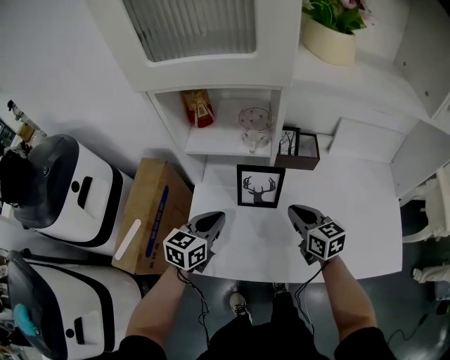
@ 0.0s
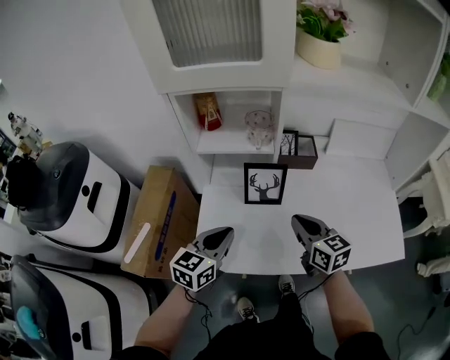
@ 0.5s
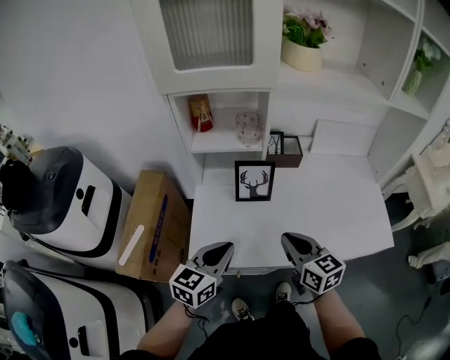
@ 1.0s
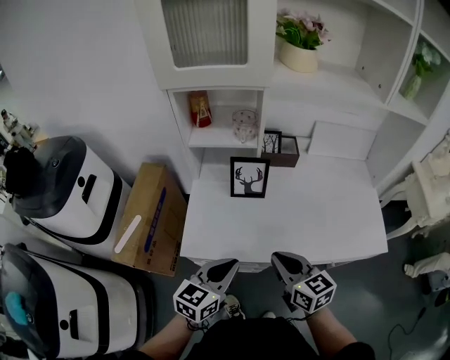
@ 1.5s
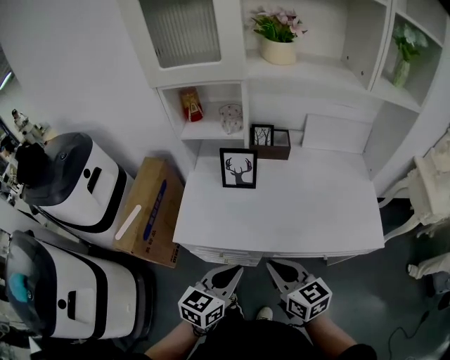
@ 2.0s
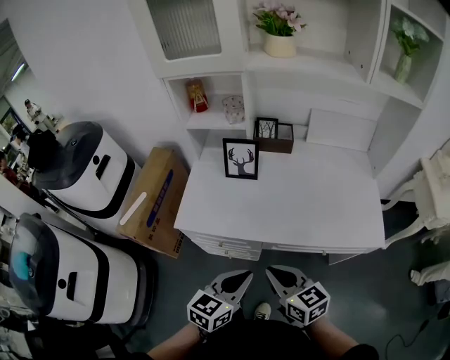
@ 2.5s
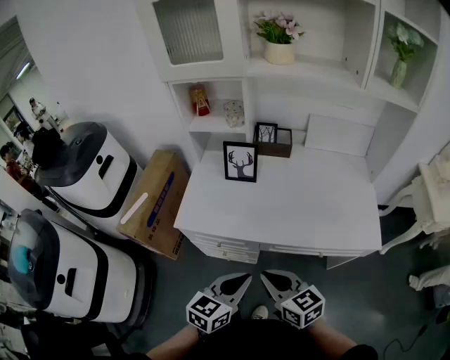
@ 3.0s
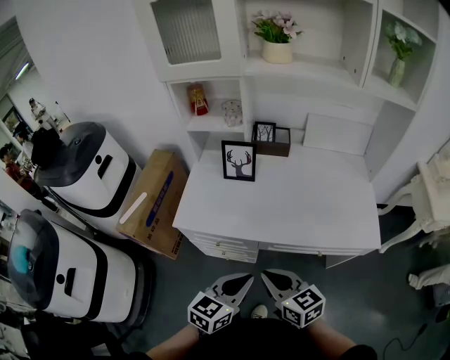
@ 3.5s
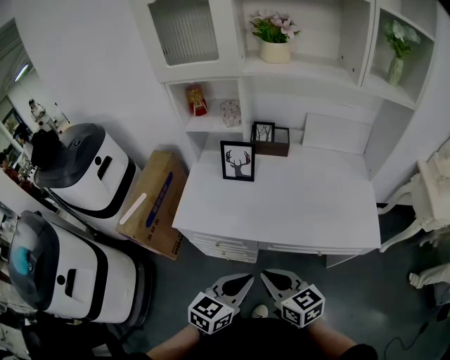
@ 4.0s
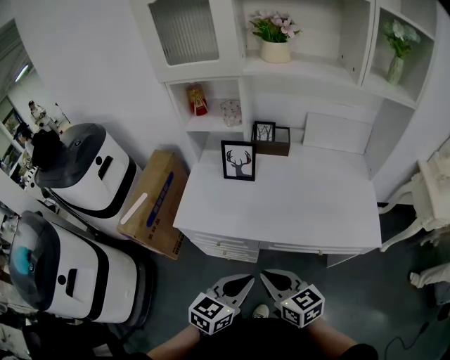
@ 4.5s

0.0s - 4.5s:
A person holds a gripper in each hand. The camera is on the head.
0.0s - 2.0s: The left gripper shifts approximately 35 cm backward and to the right; the right gripper shifts about 30 cm backward.
2.0s - 4.5s: The left gripper heads backward and to the right, covering approximately 10 cm; the right gripper is displaced backward by some 10 cm.

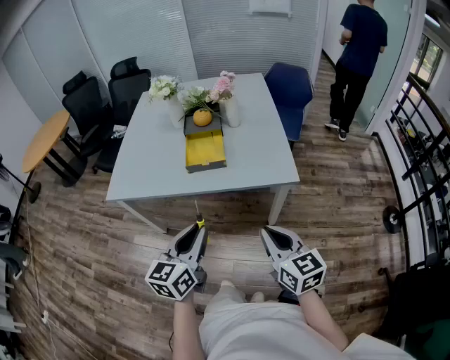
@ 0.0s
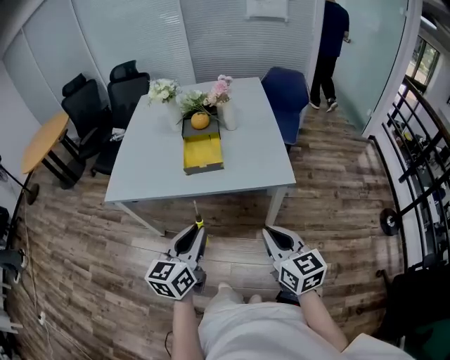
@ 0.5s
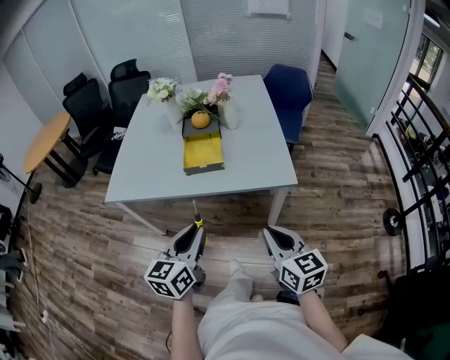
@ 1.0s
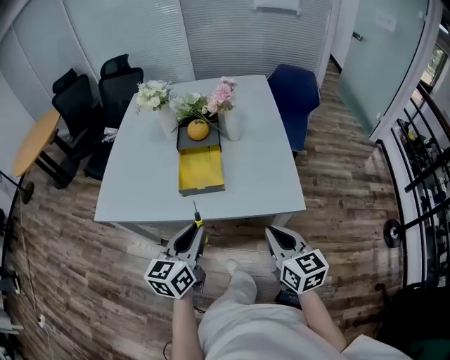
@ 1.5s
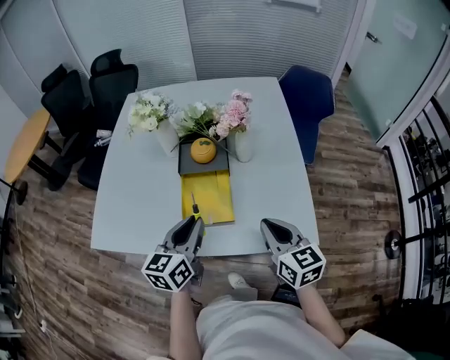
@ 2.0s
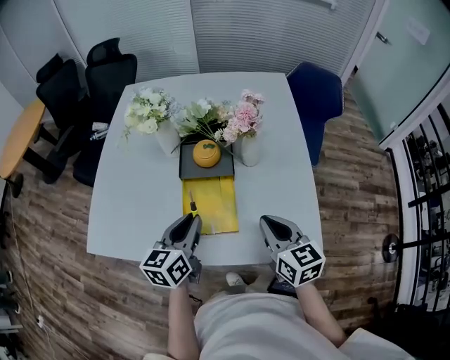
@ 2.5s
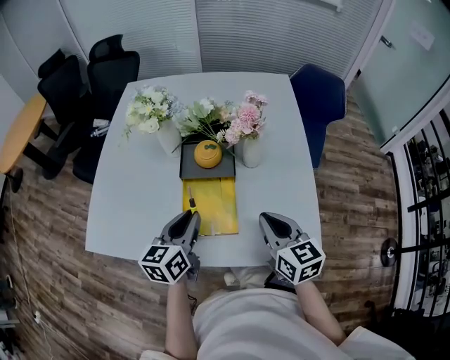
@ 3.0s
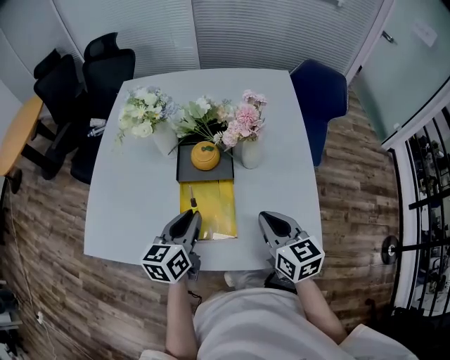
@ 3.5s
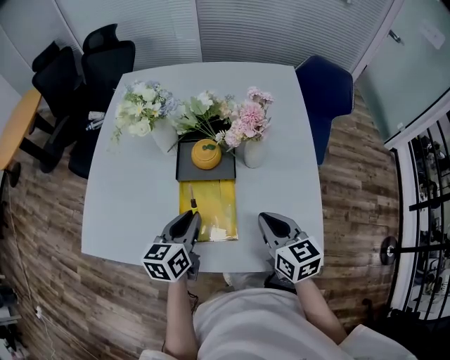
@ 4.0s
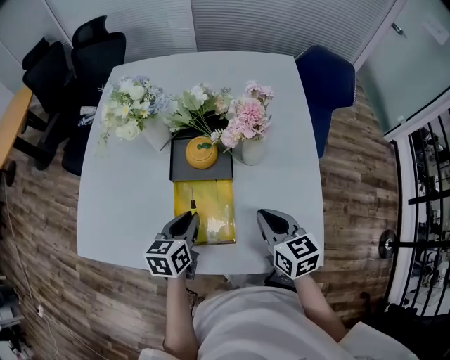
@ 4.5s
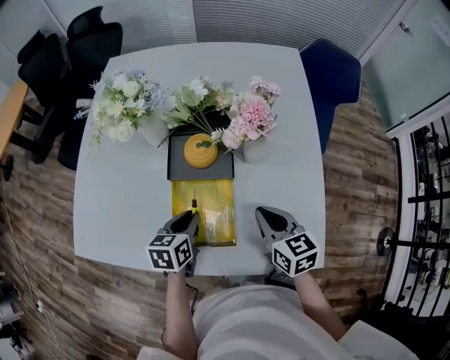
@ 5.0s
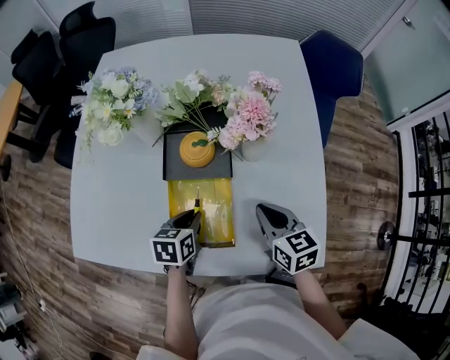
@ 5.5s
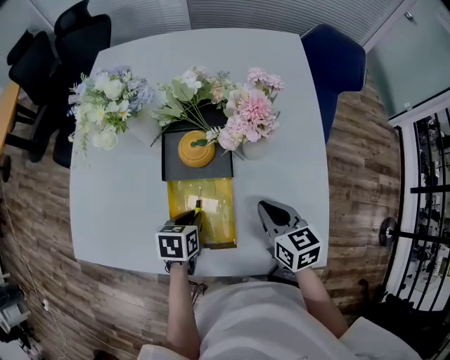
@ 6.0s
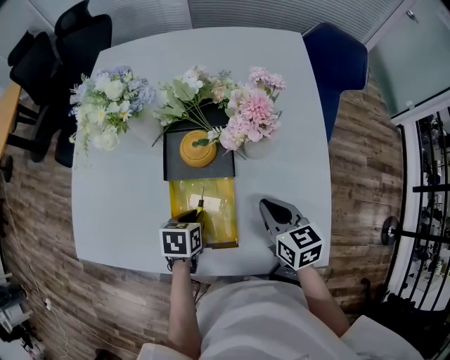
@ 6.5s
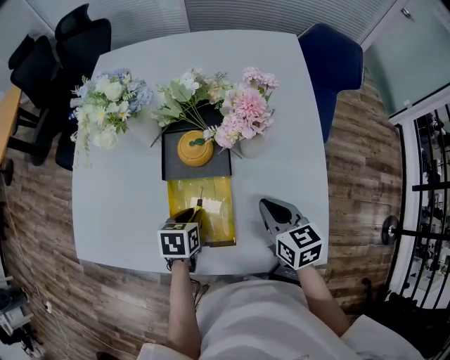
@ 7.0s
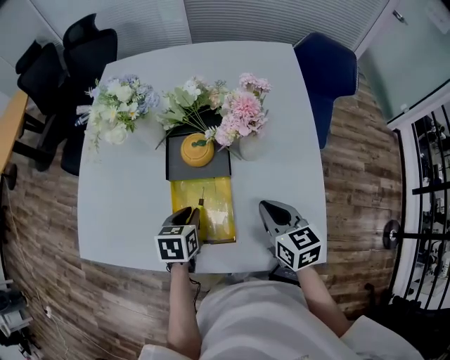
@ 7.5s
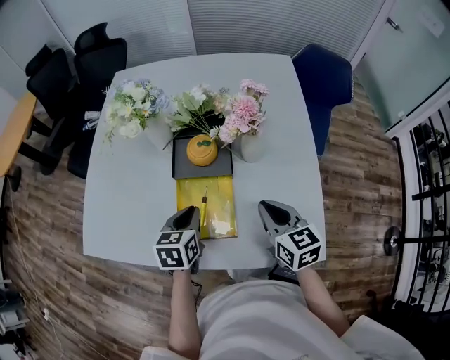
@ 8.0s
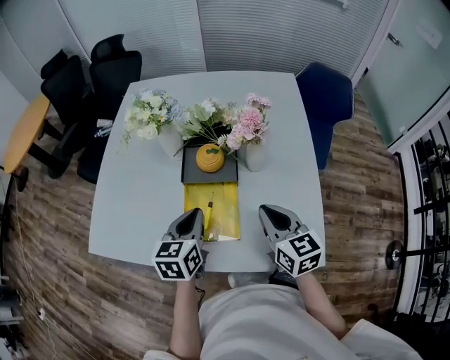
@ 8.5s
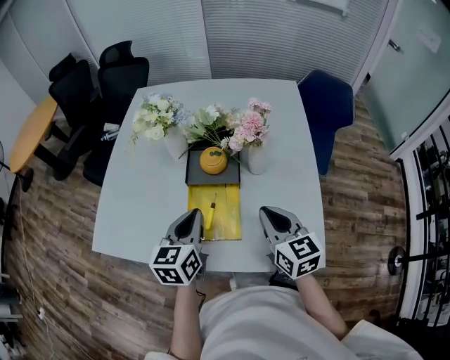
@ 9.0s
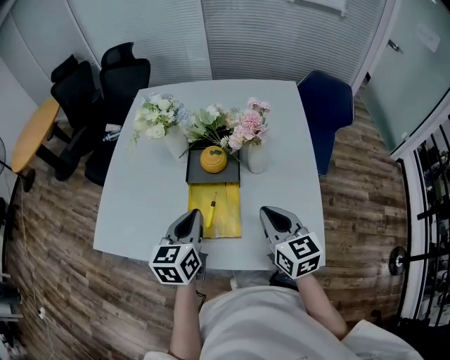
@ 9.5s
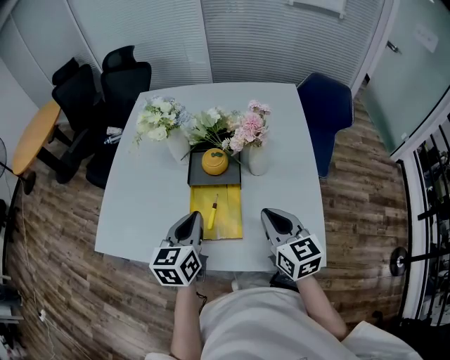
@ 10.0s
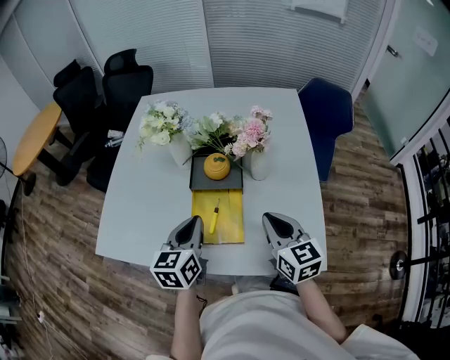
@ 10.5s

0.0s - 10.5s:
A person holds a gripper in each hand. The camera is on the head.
0.0s - 2.0s: The grippers both shift forward by about 35 cm.
2.0s - 4.0s: Both grippers travel together forward and downward, approximately 15 cm.
4.0s - 6.5s: The left gripper heads downward, covering roughly 15 cm, and points its fingers approximately 40 degrees further downward, while the right gripper goes approximately 10 cm downward and forward.
6.5s - 8.5s: The right gripper heads upward and backward, covering some 15 cm. The left gripper travels upward by roughly 20 cm, and tips its fingers upward by about 30 degrees.
8.5s - 10.5s: The grippers make only small movements.

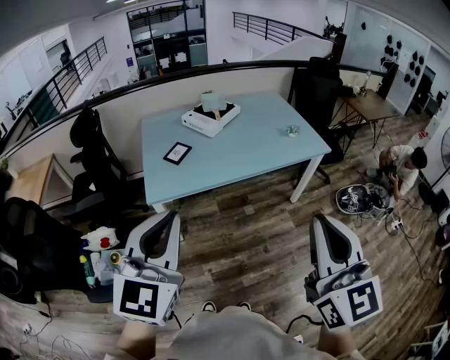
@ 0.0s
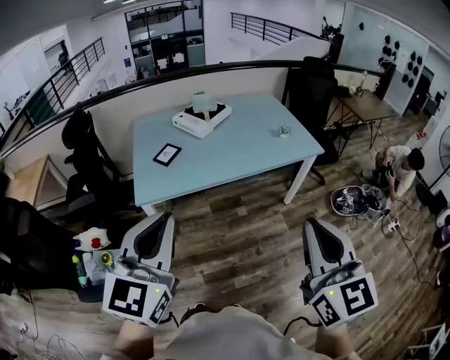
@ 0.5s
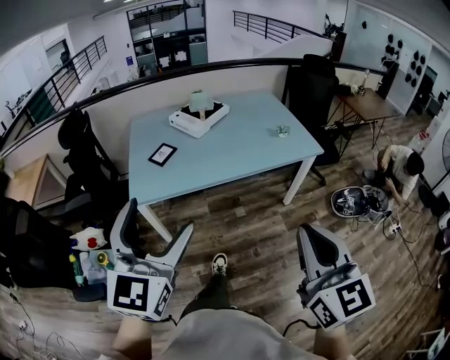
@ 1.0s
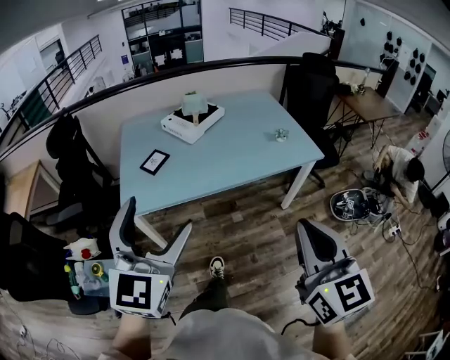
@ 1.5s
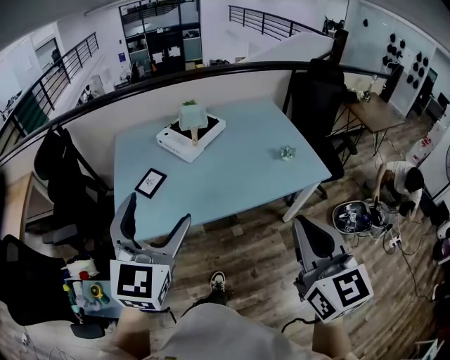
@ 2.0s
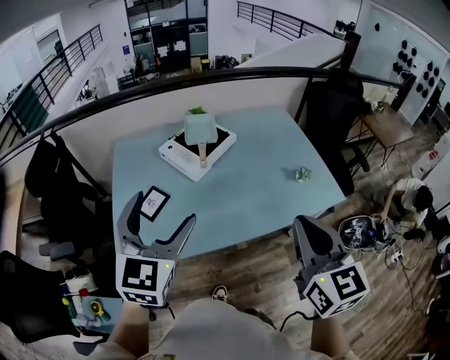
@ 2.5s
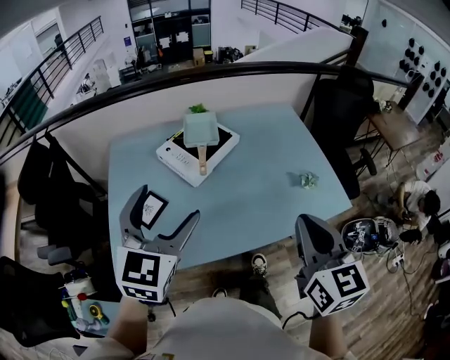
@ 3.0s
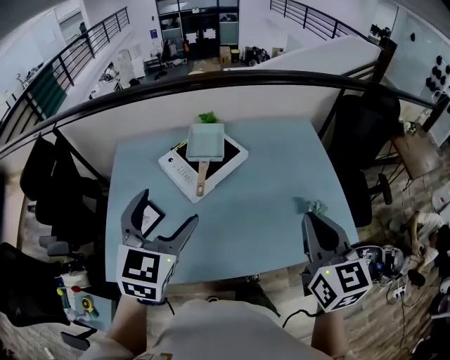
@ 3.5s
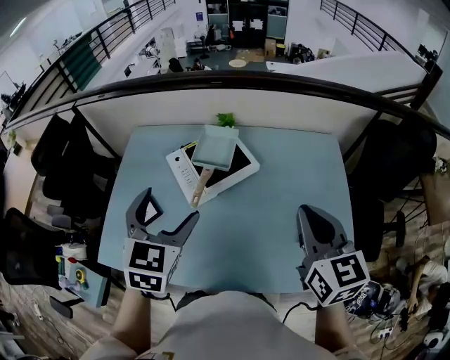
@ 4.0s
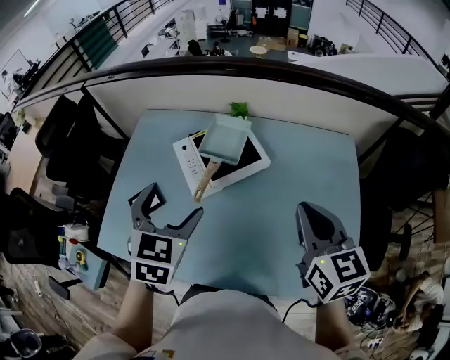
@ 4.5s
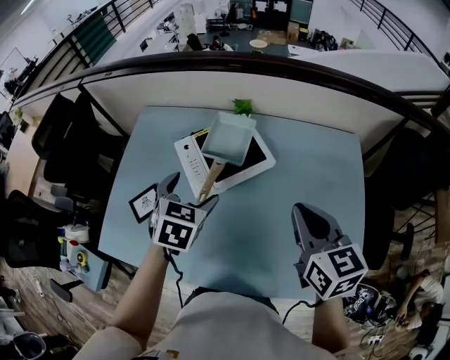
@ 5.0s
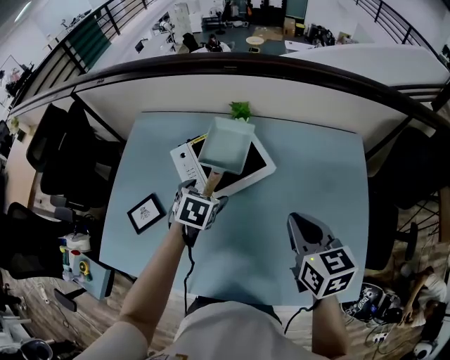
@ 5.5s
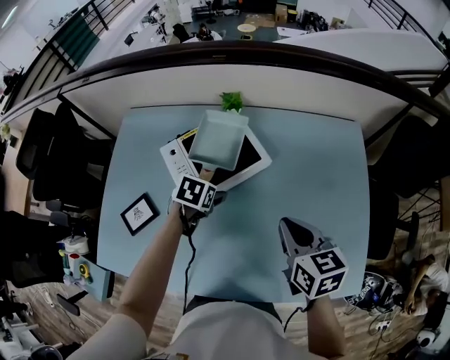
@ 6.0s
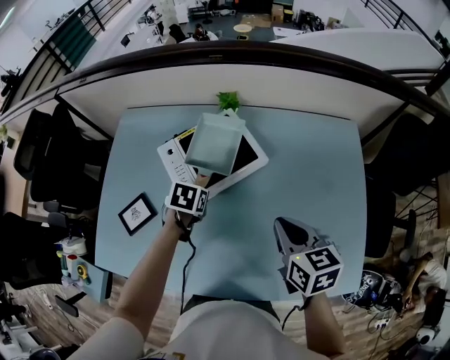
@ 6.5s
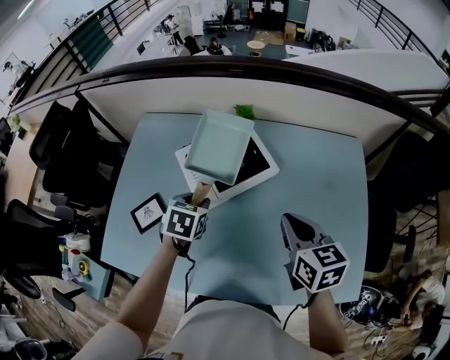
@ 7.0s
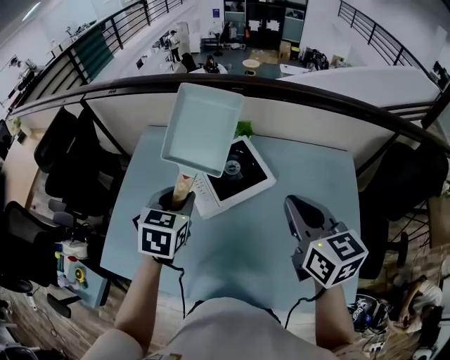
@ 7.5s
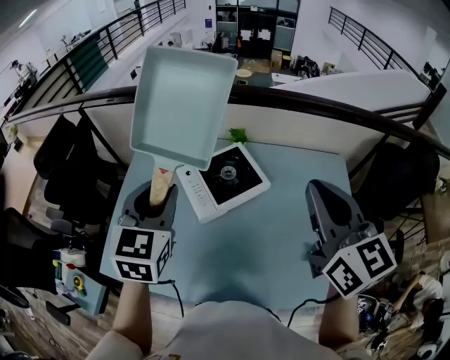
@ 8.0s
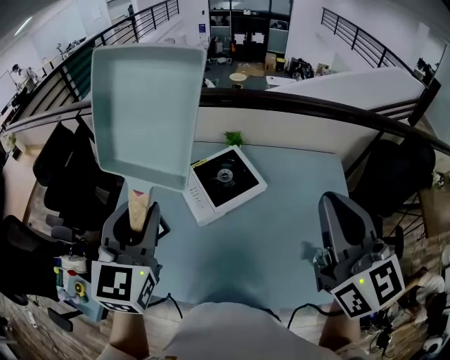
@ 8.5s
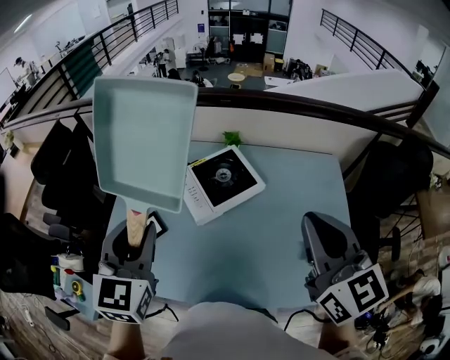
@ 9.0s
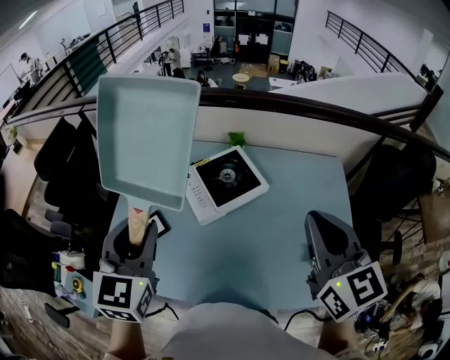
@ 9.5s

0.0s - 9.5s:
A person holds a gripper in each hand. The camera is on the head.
0.0s - 2.0s: The grippers both shift forward by some 30 cm. The left gripper opens its fingers.
2.0s - 4.0s: The pair of grippers is taken forward, approximately 50 cm. The left gripper rotates some 30 degrees. The right gripper turns by some 20 degrees.
4.0s - 5.5s: The left gripper travels downward and forward by roughly 30 cm, and tilts its fingers about 30 degrees downward, while the right gripper goes roughly 15 cm downward and forward.
5.5s - 7.5s: Both grippers travel together upward and to the left, roughly 15 cm. The left gripper rotates some 20 degrees, and closes.
7.5s - 9.5s: The right gripper goes roughly 15 cm upward and backward. Meanwhile the left gripper travels upward, backward and to the left by some 20 cm, and changes its angle by roughly 20 degrees.

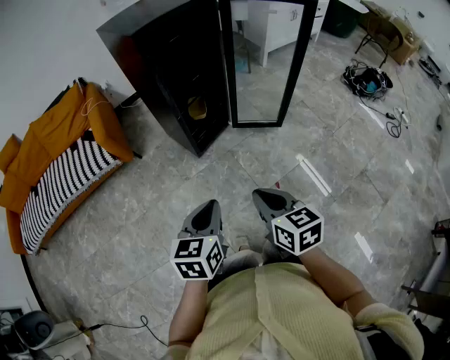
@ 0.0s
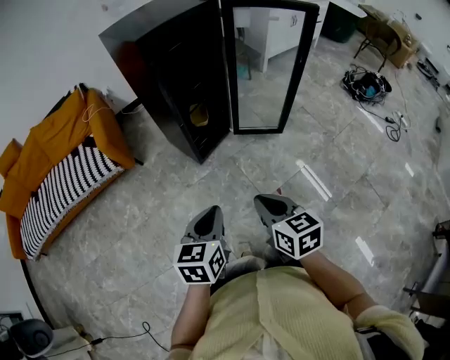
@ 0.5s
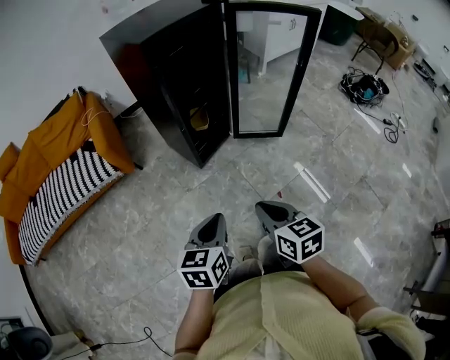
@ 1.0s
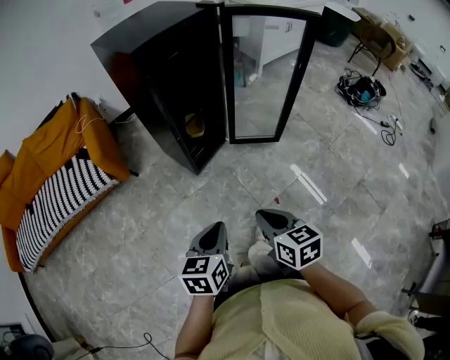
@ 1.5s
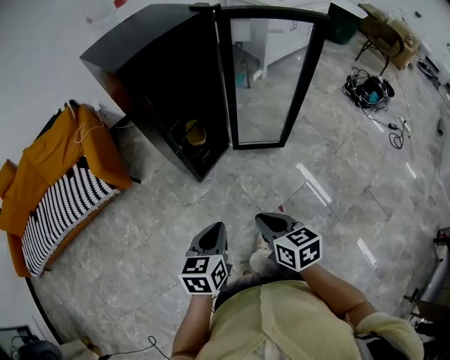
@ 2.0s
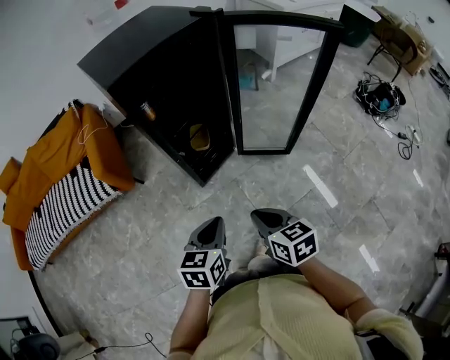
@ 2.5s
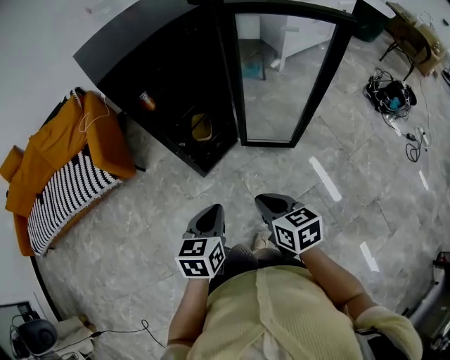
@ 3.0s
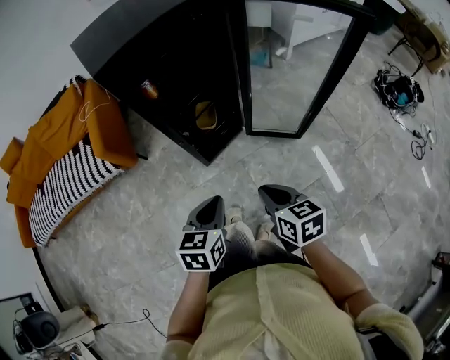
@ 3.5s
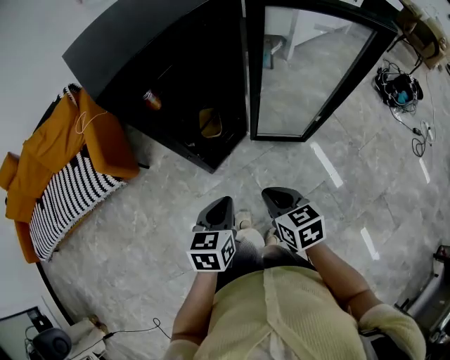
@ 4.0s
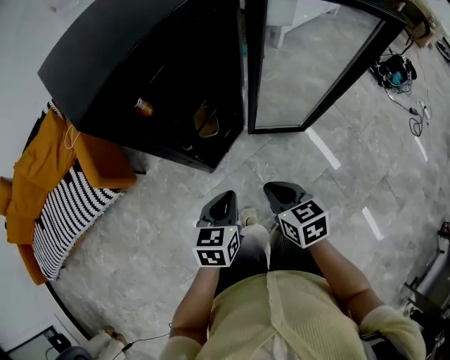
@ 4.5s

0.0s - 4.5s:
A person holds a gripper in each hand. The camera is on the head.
0.0s - 2.0s: Both grippers move forward, approximately 10 cm.
2.0s - 4.5s: Both grippers travel together forward, about 20 cm.
